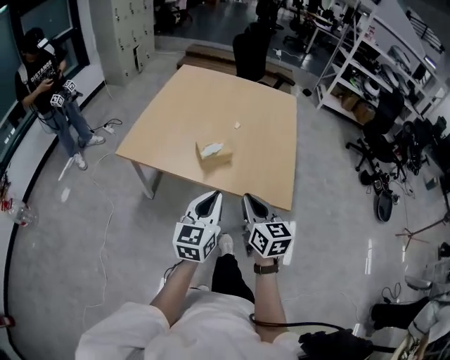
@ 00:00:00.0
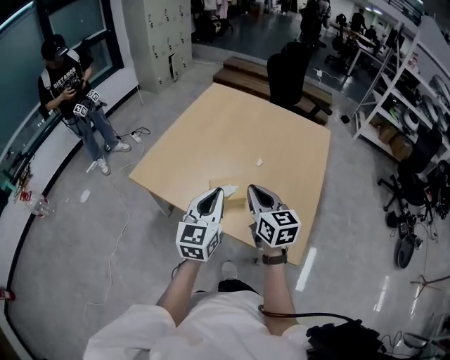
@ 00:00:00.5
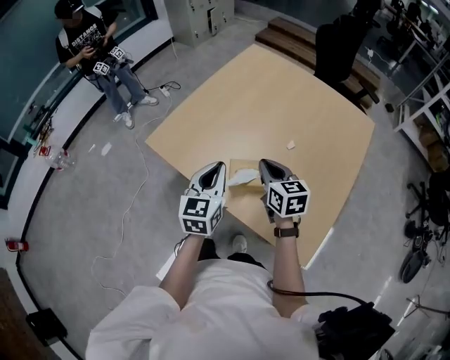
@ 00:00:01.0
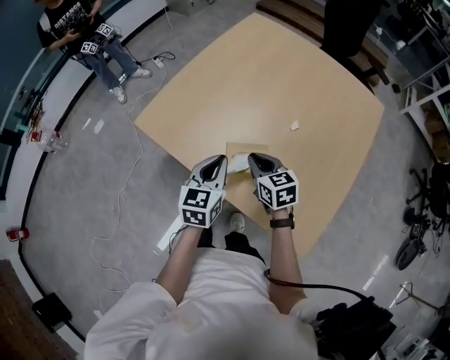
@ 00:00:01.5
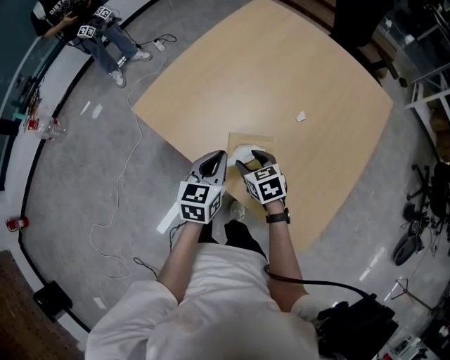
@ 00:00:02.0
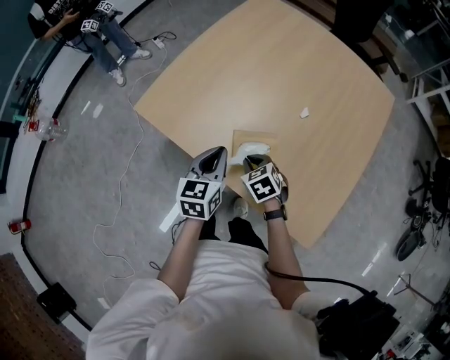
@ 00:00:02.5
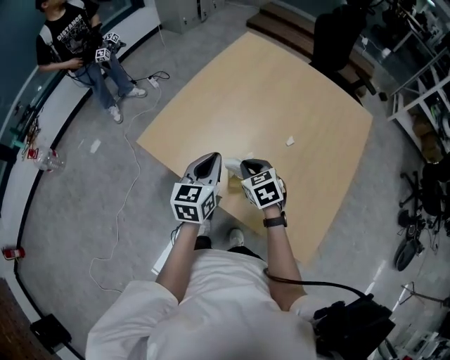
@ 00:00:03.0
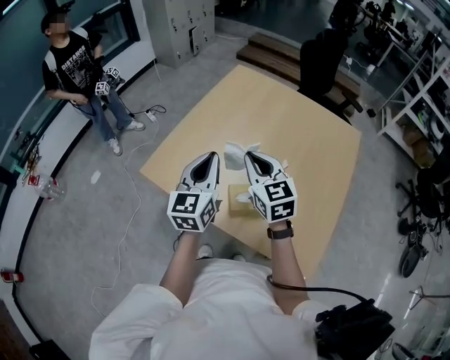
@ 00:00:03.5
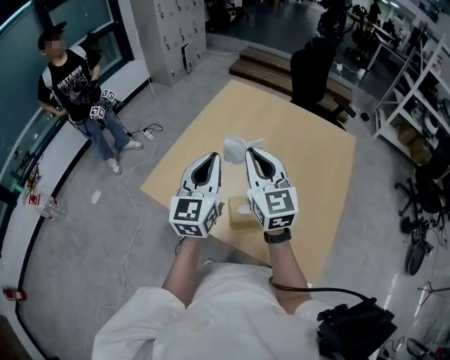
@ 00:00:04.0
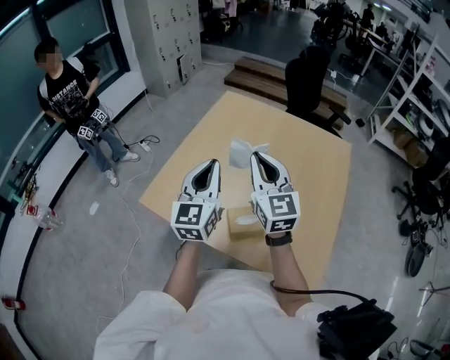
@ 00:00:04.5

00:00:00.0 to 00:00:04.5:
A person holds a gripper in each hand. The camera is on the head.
00:00:00.0 to 00:00:02.0: The right gripper changes place by approximately 40 cm, tilts its fingers some 30 degrees downward, and opens; the left gripper shifts by about 35 cm, and turns by roughly 30 degrees.
00:00:02.0 to 00:00:04.5: Both grippers travel together upward, approximately 30 cm. The right gripper angles its fingers upward, by about 50 degrees, and closes. Meanwhile the left gripper tips its fingers upward by roughly 30 degrees.

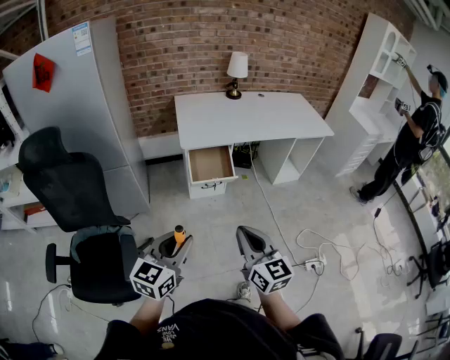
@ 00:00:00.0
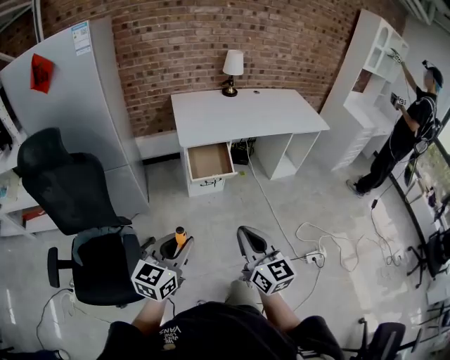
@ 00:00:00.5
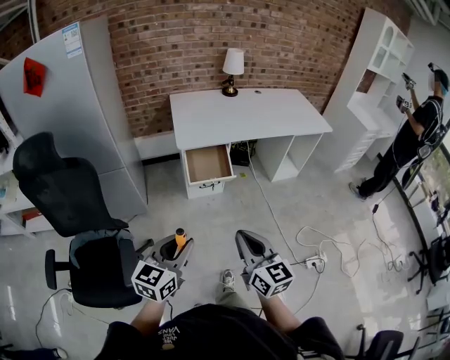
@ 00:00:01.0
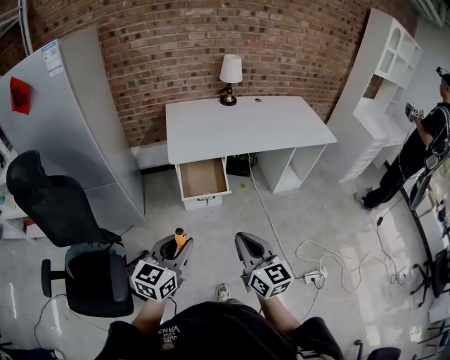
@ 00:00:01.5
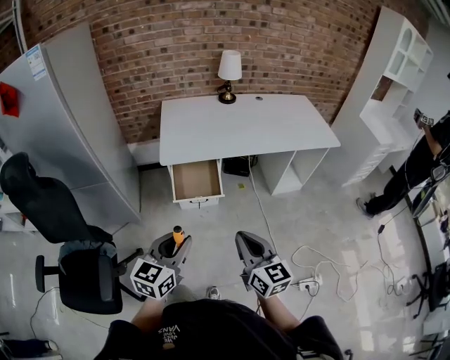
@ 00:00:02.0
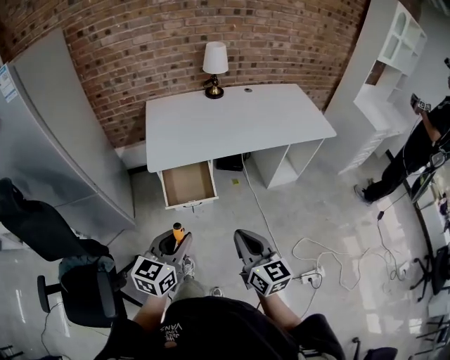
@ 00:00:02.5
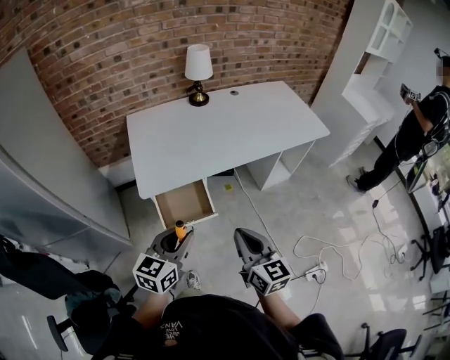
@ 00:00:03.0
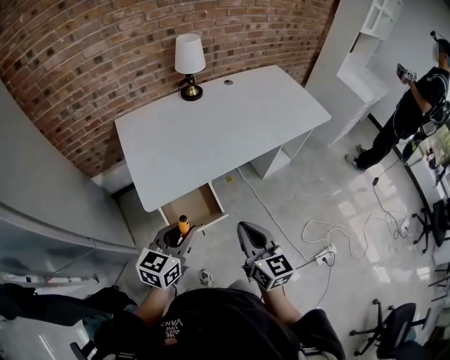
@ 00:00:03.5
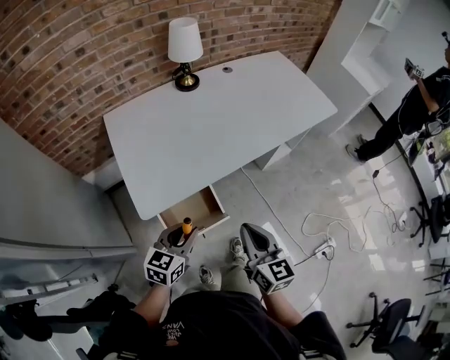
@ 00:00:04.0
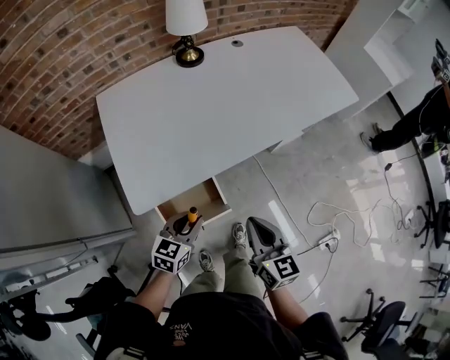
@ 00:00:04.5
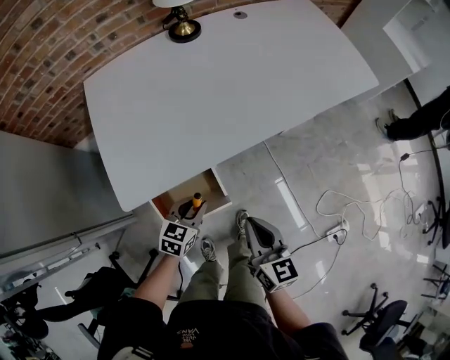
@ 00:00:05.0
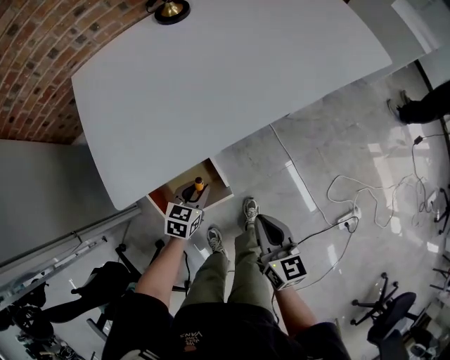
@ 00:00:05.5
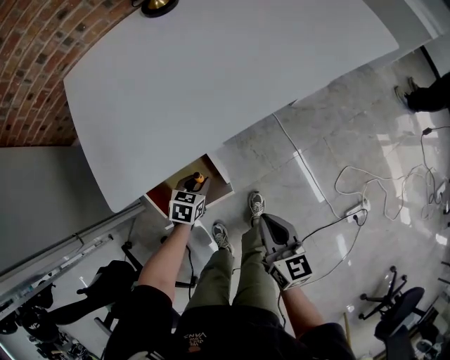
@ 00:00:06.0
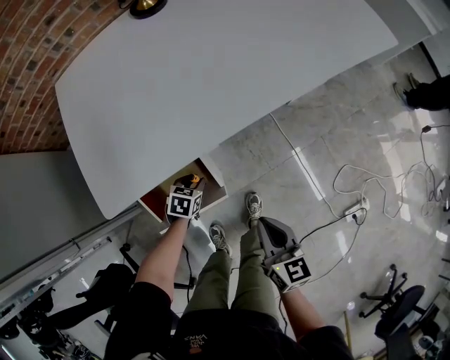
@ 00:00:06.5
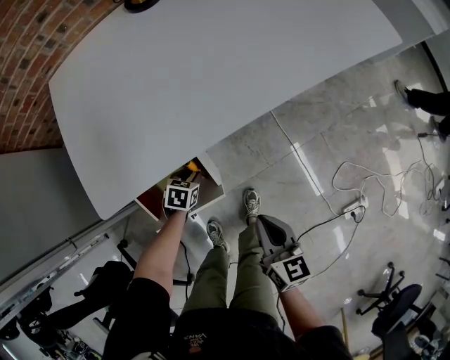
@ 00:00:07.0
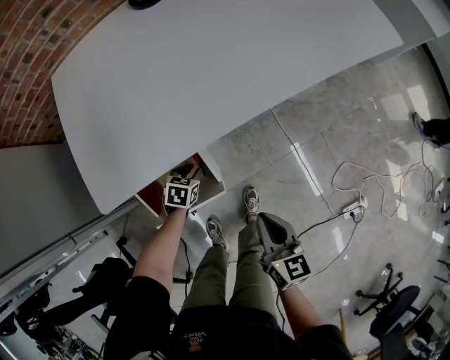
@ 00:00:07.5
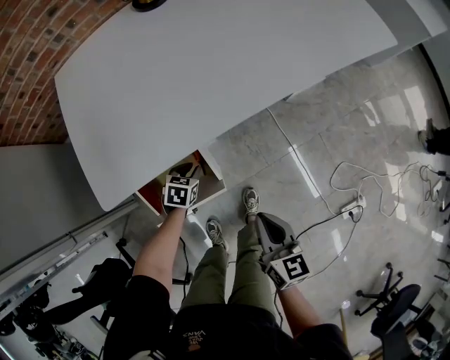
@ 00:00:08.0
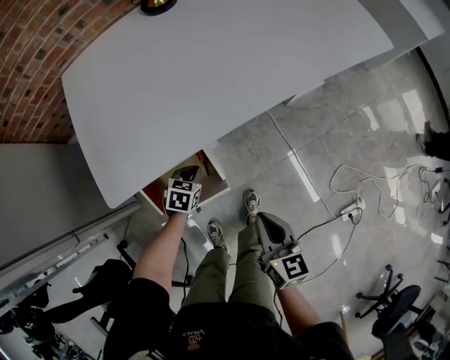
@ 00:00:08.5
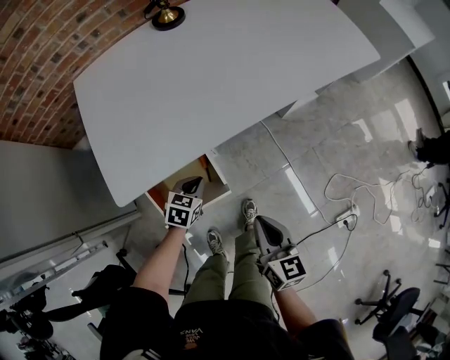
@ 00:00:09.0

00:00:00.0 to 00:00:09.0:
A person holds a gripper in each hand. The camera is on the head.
00:00:00.0 to 00:00:02.0: The grippers both shift forward and to the right by roughly 20 cm.
00:00:02.0 to 00:00:04.5: The left gripper goes approximately 50 cm forward and downward, and changes its angle by roughly 30 degrees, while the right gripper goes about 35 cm forward, and swivels about 20 degrees.
00:00:04.5 to 00:00:07.0: The left gripper is displaced downward by roughly 30 cm, and tilts its fingers some 40 degrees downward. The right gripper moves downward and to the right, approximately 20 cm.
00:00:07.0 to 00:00:09.0: The left gripper travels upward by some 15 cm. The right gripper is displaced upward by some 5 cm.

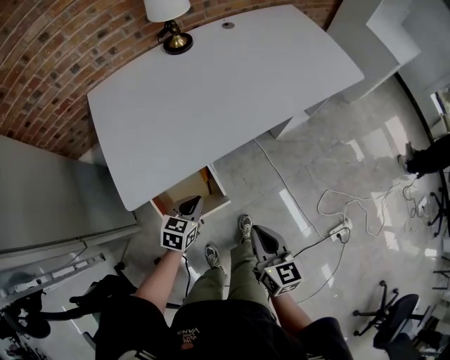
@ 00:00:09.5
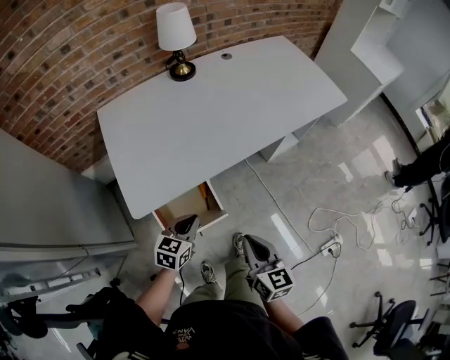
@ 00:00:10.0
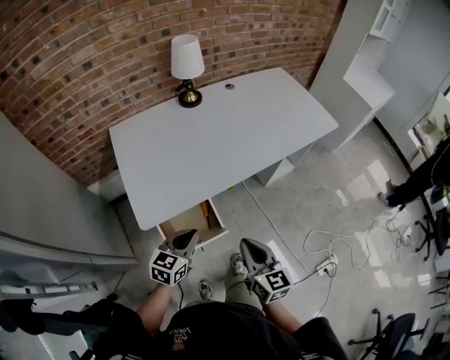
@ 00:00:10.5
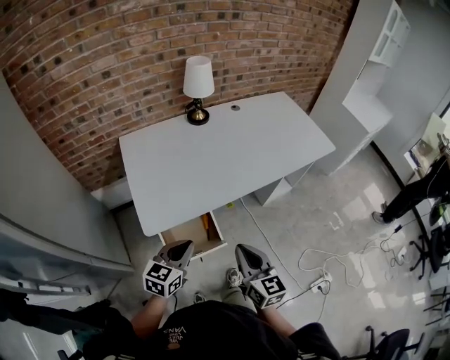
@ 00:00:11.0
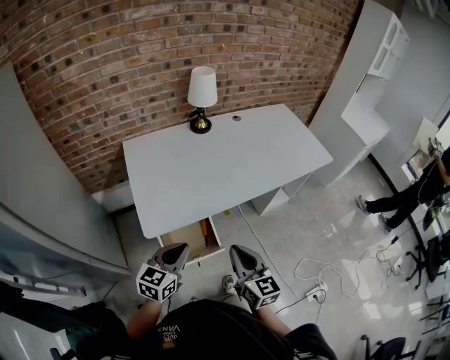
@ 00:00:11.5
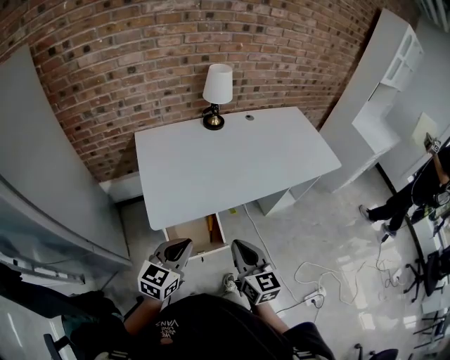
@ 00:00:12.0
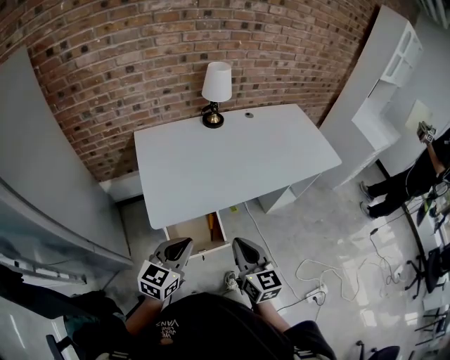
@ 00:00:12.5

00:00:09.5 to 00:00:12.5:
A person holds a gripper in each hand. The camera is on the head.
00:00:09.5 to 00:00:11.0: The right gripper moves upward and to the left, some 15 cm. The left gripper goes about 25 cm upward and backward.
00:00:11.0 to 00:00:12.5: The left gripper shifts about 5 cm upward.

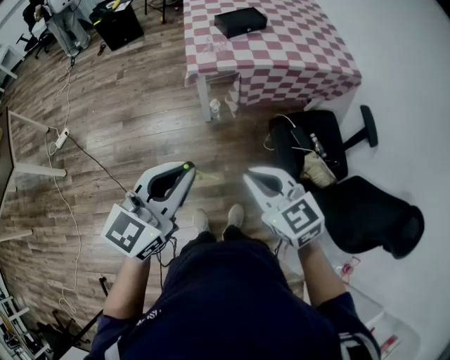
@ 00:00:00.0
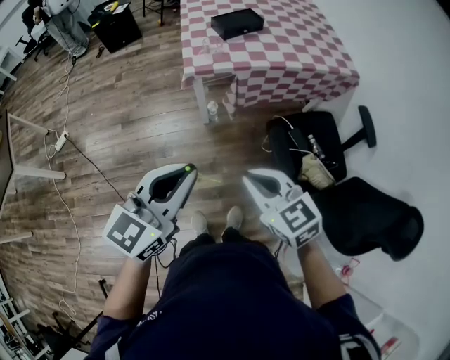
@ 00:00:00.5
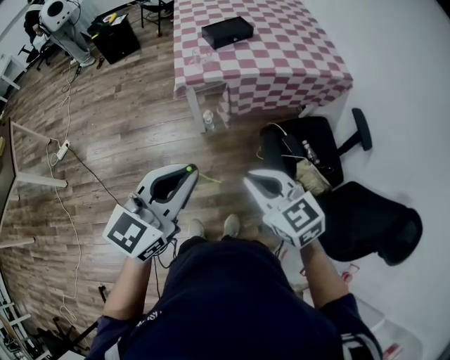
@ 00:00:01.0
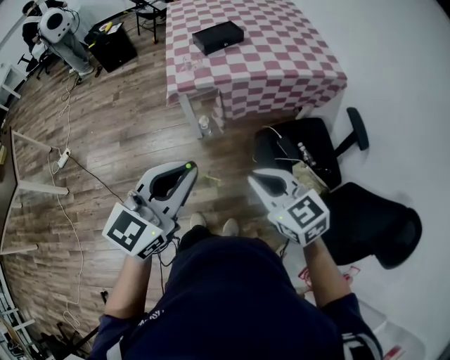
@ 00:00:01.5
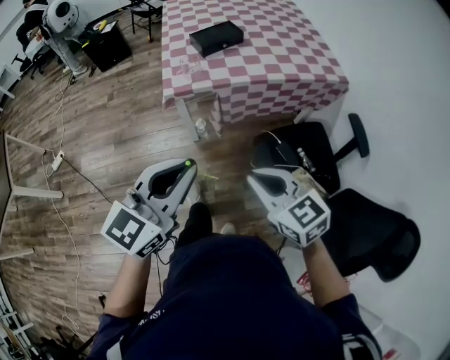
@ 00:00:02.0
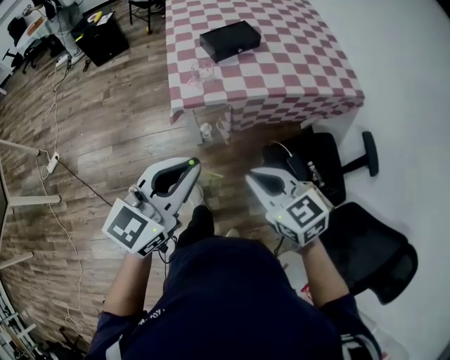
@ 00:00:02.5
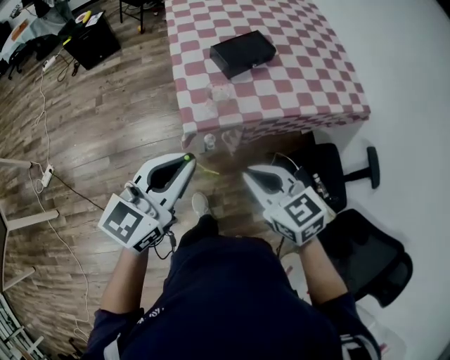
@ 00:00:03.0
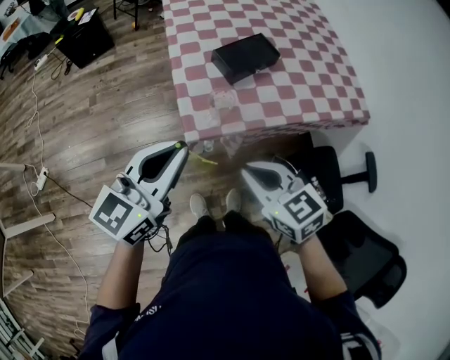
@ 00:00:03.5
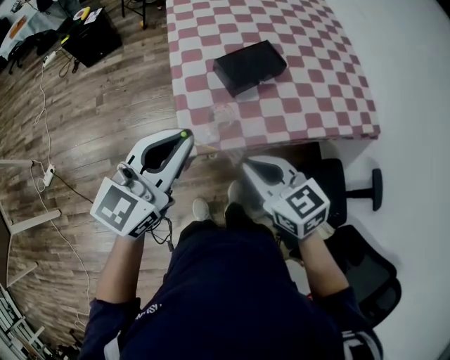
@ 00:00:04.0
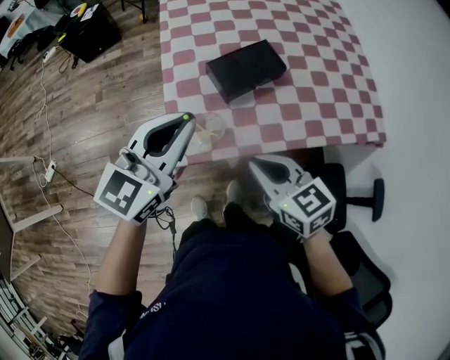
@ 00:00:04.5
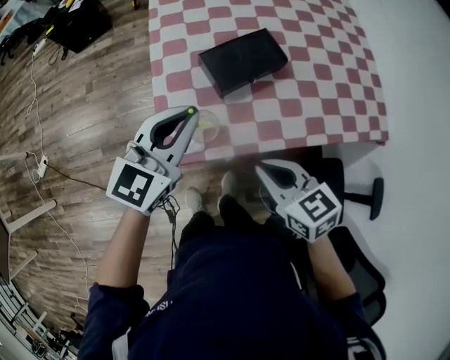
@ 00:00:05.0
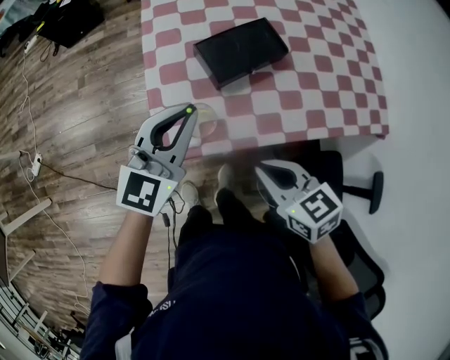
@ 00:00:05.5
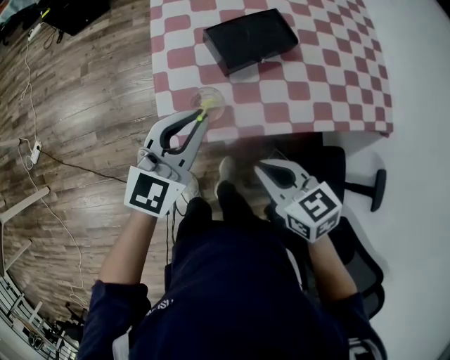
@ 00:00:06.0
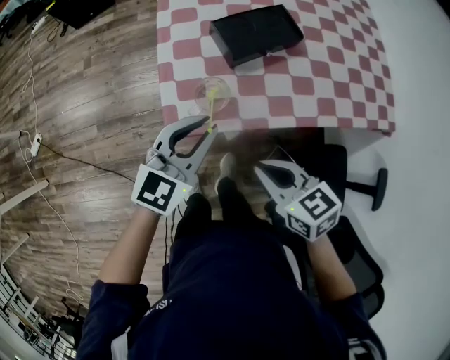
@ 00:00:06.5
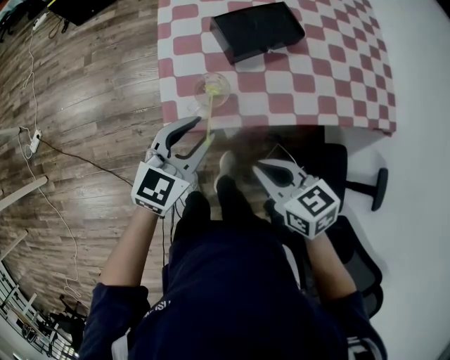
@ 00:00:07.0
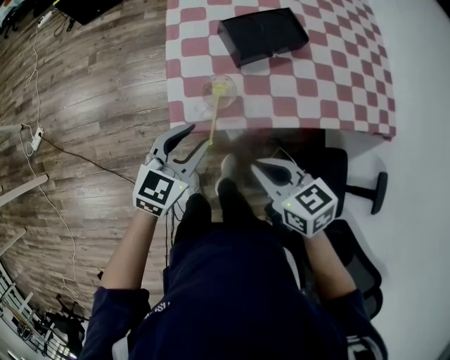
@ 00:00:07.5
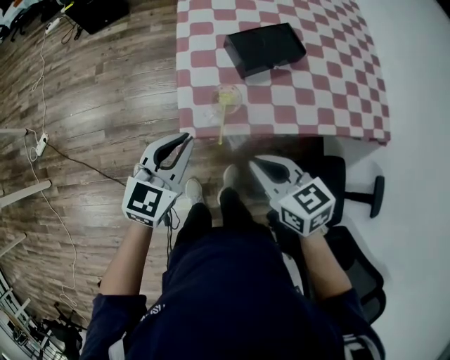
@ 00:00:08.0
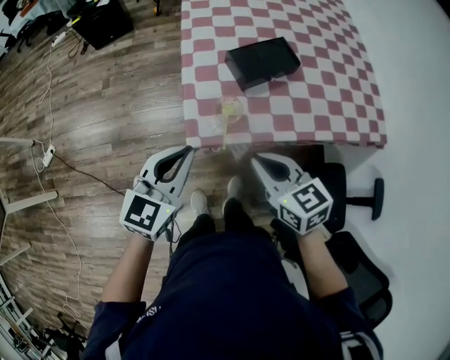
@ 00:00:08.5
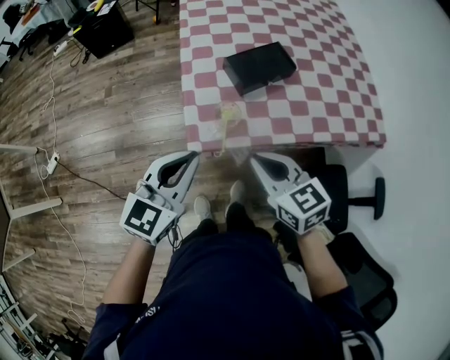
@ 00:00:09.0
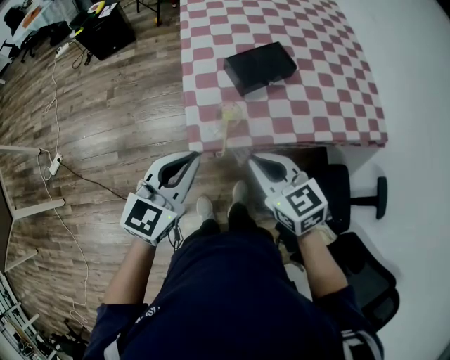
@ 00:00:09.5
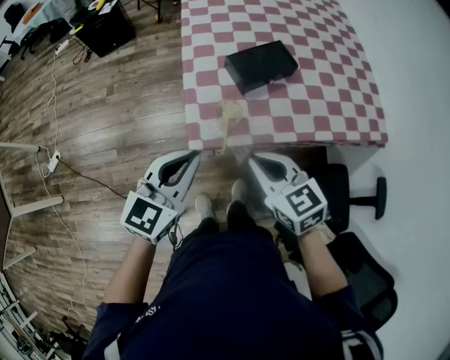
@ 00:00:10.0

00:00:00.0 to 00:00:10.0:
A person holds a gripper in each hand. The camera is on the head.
00:00:00.0 to 00:00:02.0: Both grippers travel together to the right and forward, approximately 15 cm.
00:00:02.0 to 00:00:04.0: Both grippers are carried forward, roughly 40 cm.
00:00:04.0 to 00:00:06.0: The left gripper travels downward, to the right and forward by approximately 15 cm, while the right gripper heads downward and to the right, covering some 10 cm.
00:00:06.0 to 00:00:08.0: The left gripper heads to the left and backward, covering roughly 10 cm, and opens and closes again. The right gripper heads to the left, covering approximately 5 cm.
00:00:08.0 to 00:00:10.0: The left gripper heads upward, covering roughly 10 cm.
